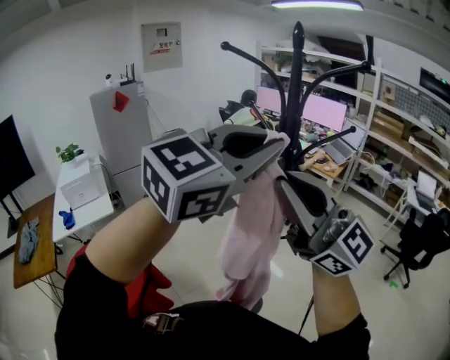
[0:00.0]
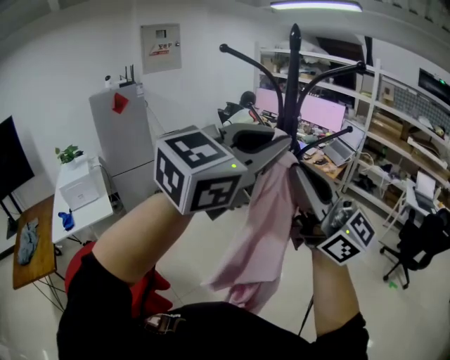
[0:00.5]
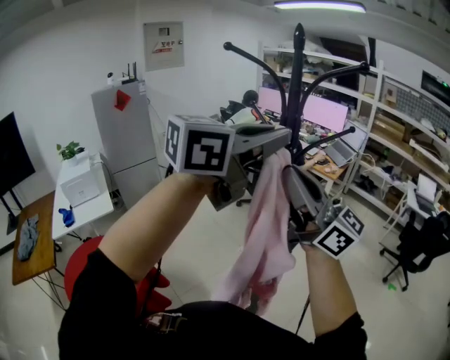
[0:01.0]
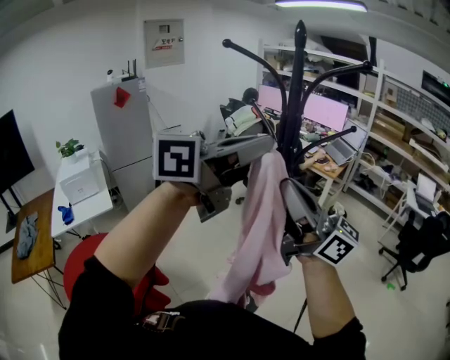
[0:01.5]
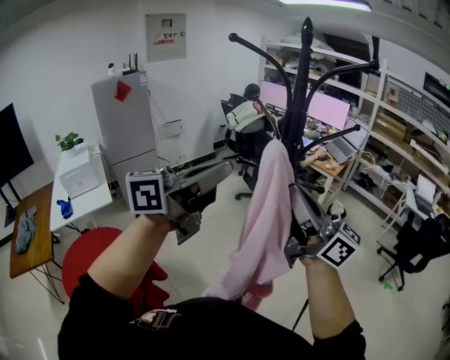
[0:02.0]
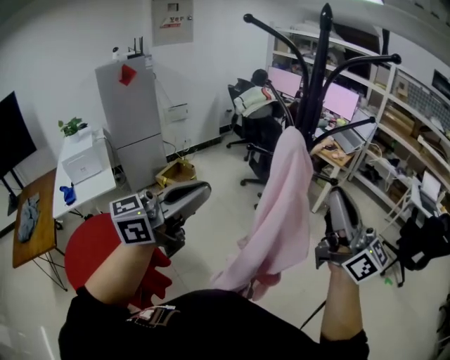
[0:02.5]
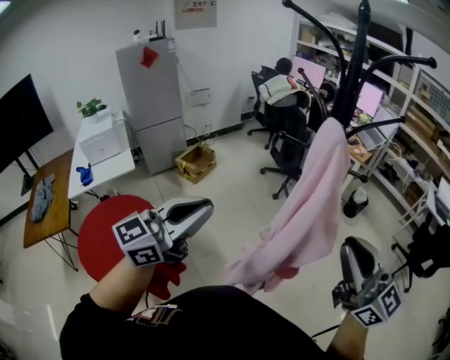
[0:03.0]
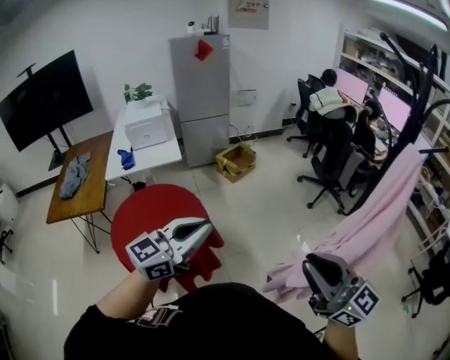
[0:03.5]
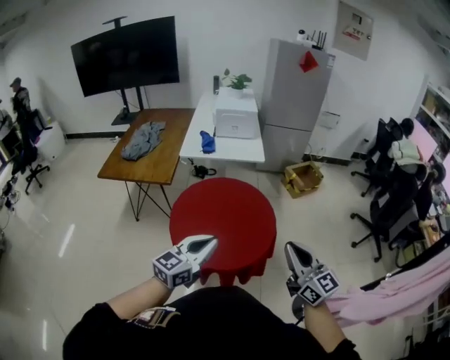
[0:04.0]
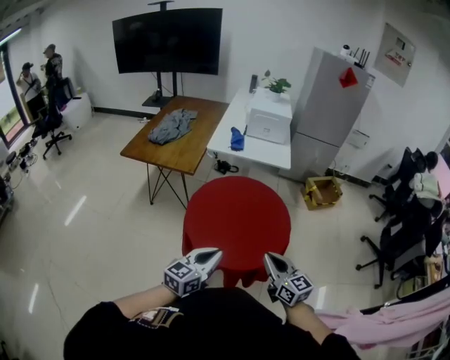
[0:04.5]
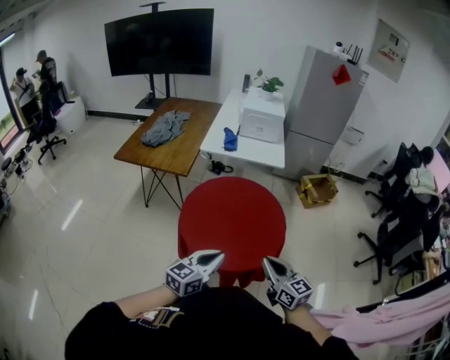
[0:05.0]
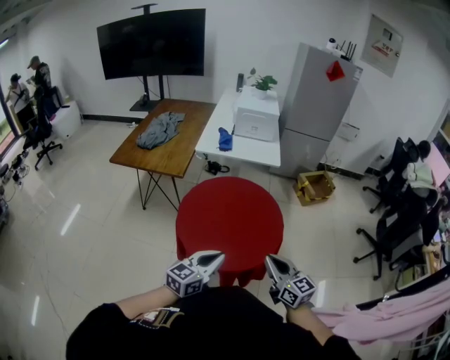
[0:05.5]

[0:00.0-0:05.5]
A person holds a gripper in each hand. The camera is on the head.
0:00.0 to 0:02.0: The left gripper shifts by about 10 cm, and rolls counterclockwise, seen from behind, by approximately 50 degrees, while the right gripper changes place by some 10 cm, and turns by roughly 40 degrees.
0:02.0 to 0:03.5: The right gripper moves roughly 25 cm, and turns by about 30 degrees; the left gripper shifts by roughly 40 cm, and swivels roughly 40 degrees.
0:03.5 to 0:05.5: The right gripper ends up about 40 cm from where it was, and turns by approximately 30 degrees. Meanwhile the left gripper changes place by some 35 cm, and swivels about 40 degrees.

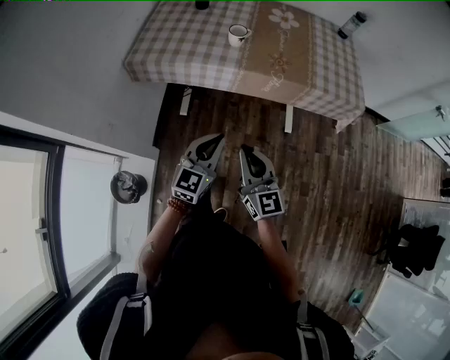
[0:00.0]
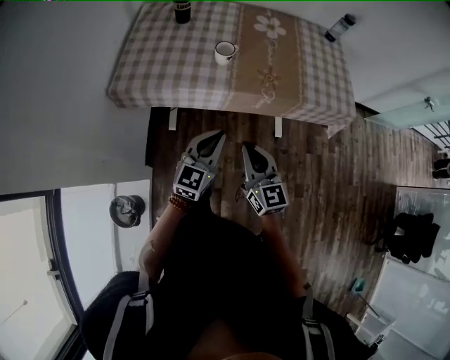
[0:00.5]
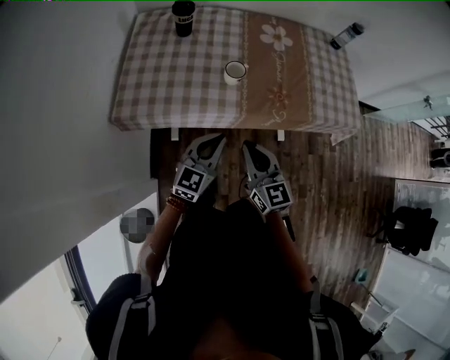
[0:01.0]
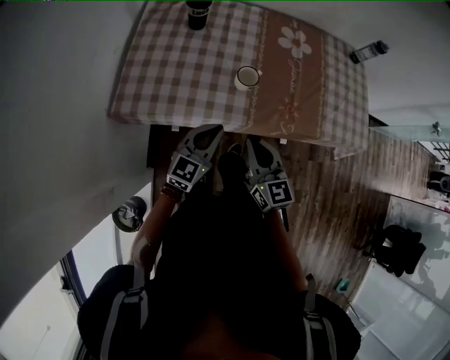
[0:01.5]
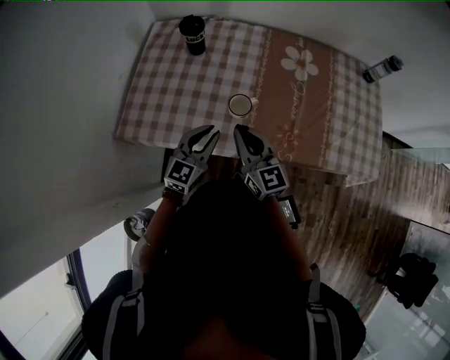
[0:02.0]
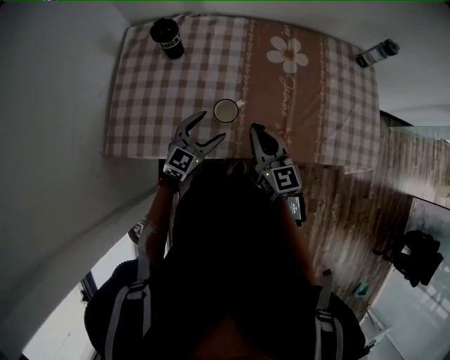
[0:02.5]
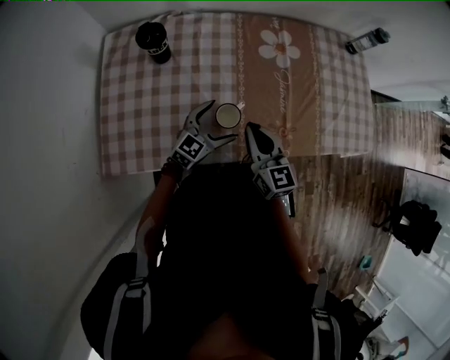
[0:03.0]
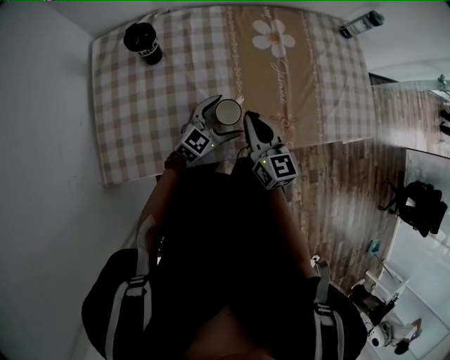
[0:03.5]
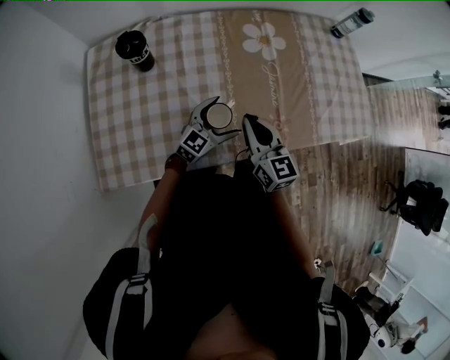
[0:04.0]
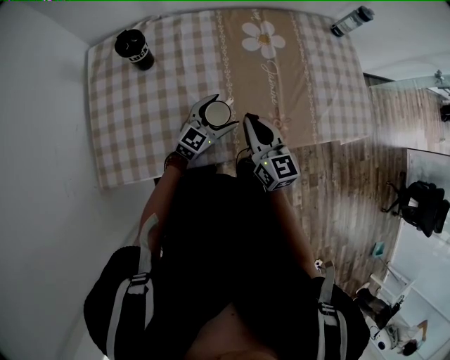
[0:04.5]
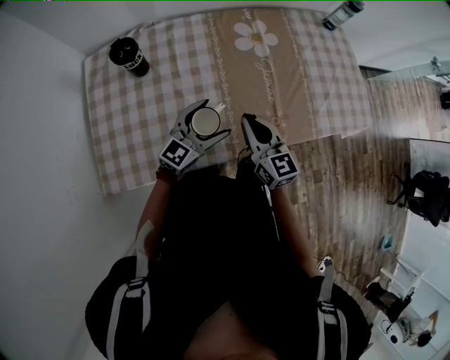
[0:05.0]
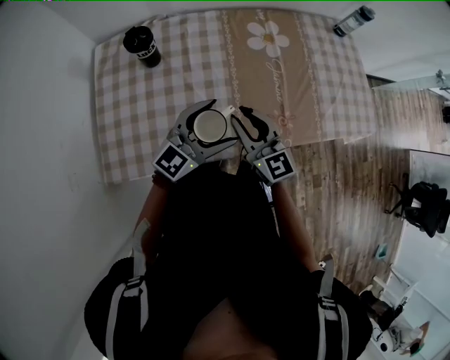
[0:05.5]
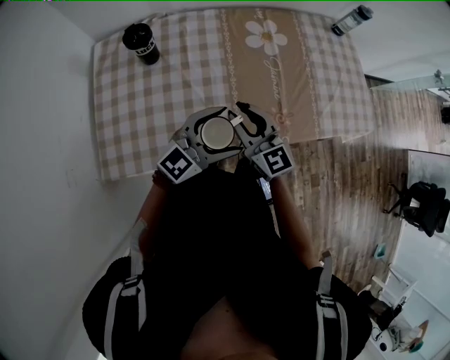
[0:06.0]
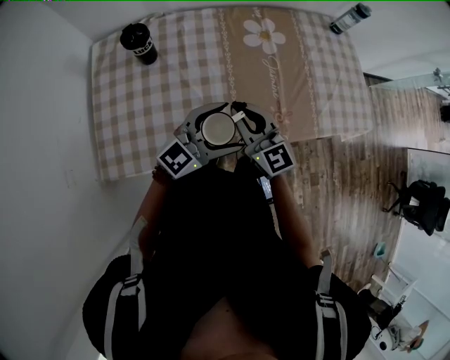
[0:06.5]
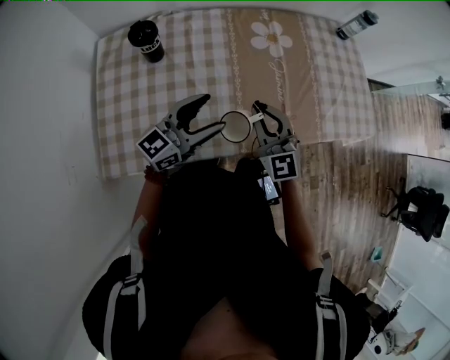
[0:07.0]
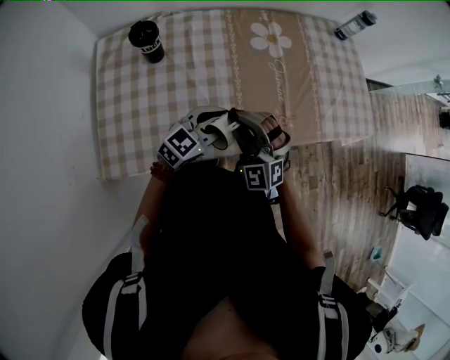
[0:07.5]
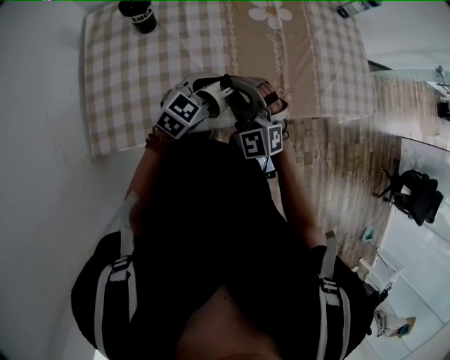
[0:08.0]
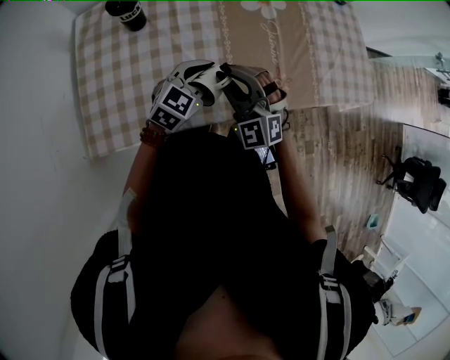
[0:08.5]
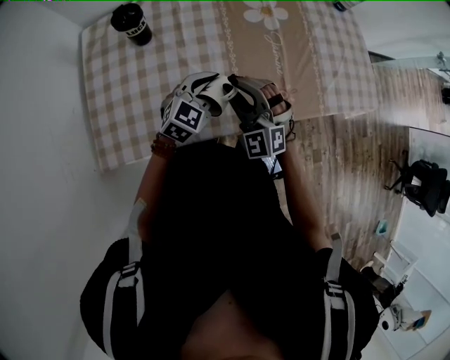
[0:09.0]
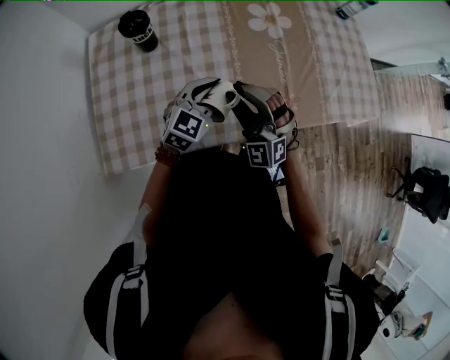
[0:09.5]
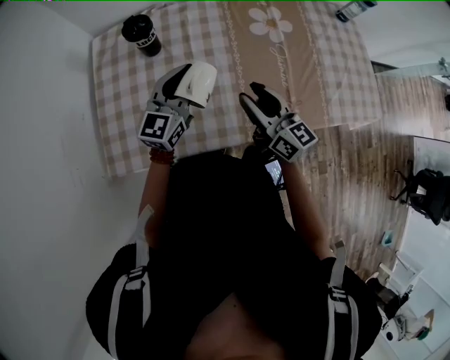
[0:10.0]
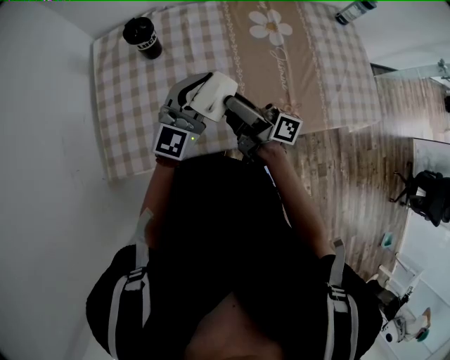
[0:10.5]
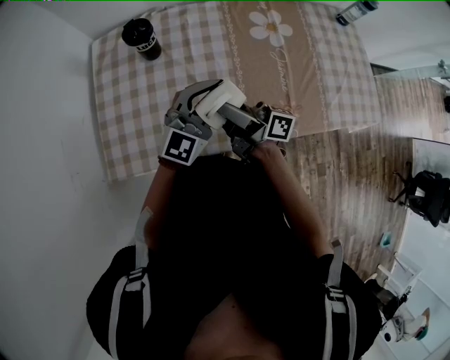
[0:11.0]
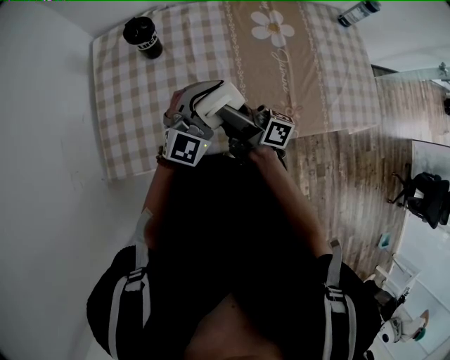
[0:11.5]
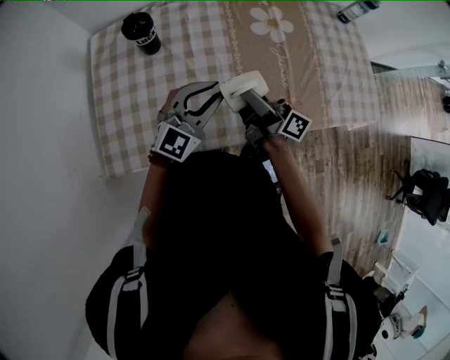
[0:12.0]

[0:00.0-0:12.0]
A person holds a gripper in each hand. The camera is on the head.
0:00.0 to 0:02.0: The pair of grippers is taken forward, approximately 40 cm.
0:02.0 to 0:04.0: The right gripper changes place by approximately 10 cm, and swivels about 20 degrees; the left gripper ends up some 20 cm from where it was, swivels about 30 degrees, and opens its fingers.
0:04.0 to 0:06.0: The left gripper is displaced upward and backward by about 20 cm; the right gripper changes place by roughly 5 cm.
0:06.0 to 0:08.0: The right gripper twists approximately 50 degrees counterclockwise, seen from behind, while the left gripper heads downward and forward, covering approximately 10 cm, rotates about 30 degrees, and closes up.
0:08.0 to 0:10.0: The left gripper is displaced to the left, upward and forward by roughly 15 cm, and swivels approximately 30 degrees; the right gripper shifts by some 5 cm, rotates around the line of its fingers by about 70 degrees, clockwise from behind, and opens up.
0:10.0 to 0:12.0: The left gripper moves backward and to the right, some 10 cm, and swivels some 30 degrees, while the right gripper travels to the left and back again, approximately 10 cm each way, rolls clockwise, seen from behind, by some 40 degrees, and opens.

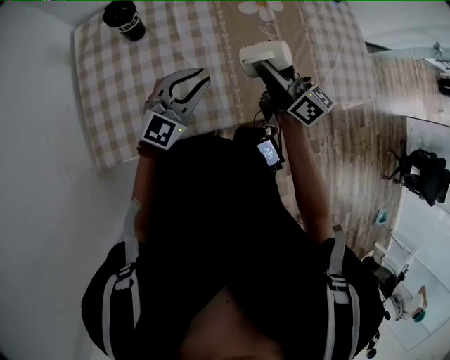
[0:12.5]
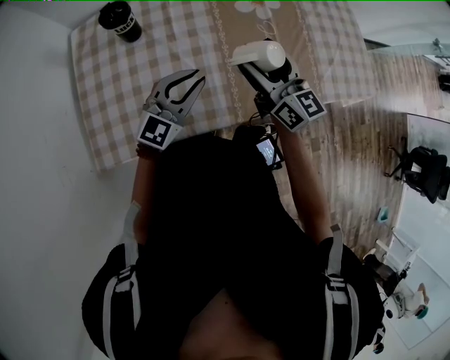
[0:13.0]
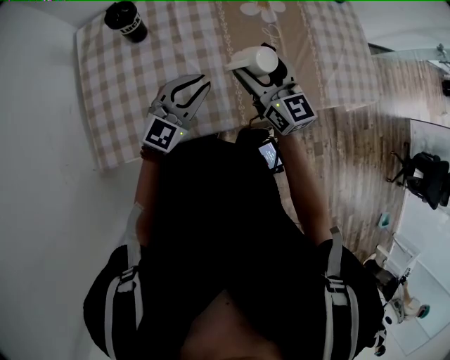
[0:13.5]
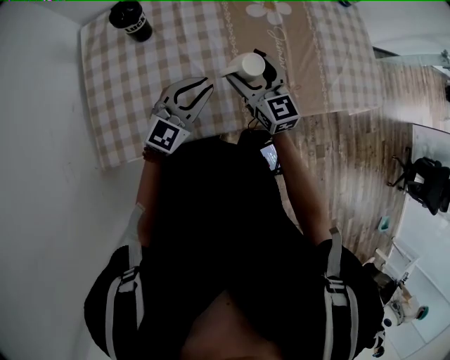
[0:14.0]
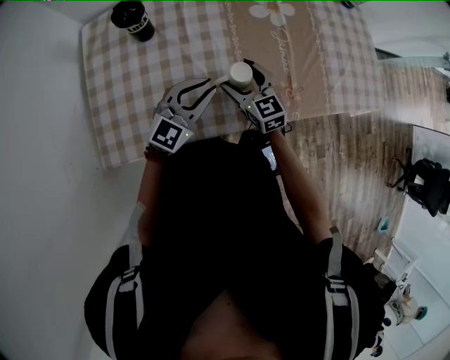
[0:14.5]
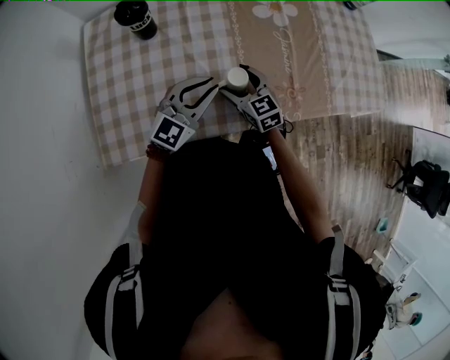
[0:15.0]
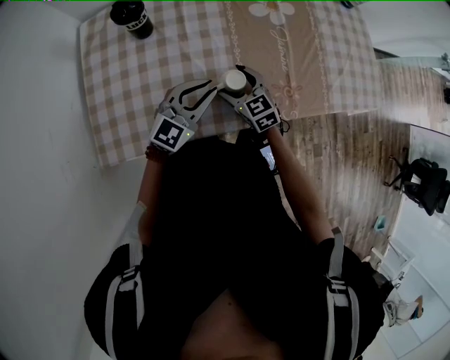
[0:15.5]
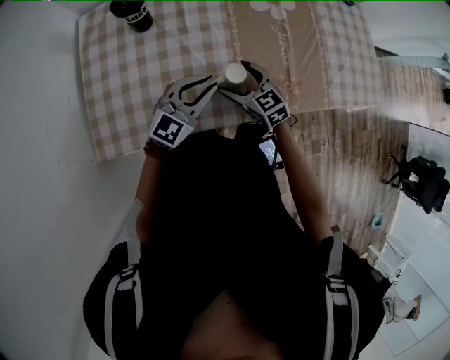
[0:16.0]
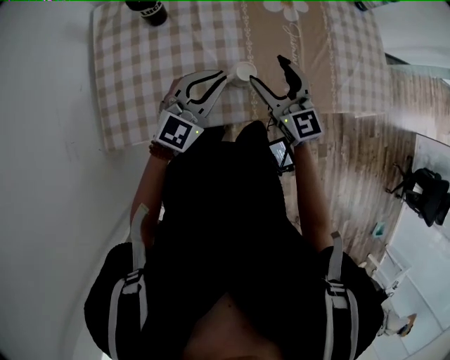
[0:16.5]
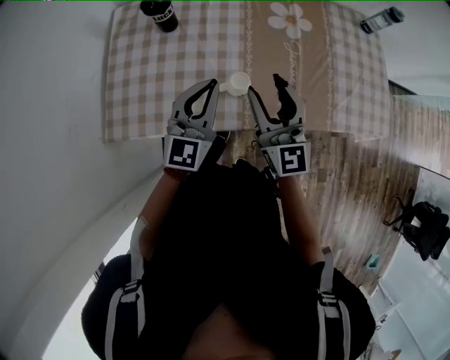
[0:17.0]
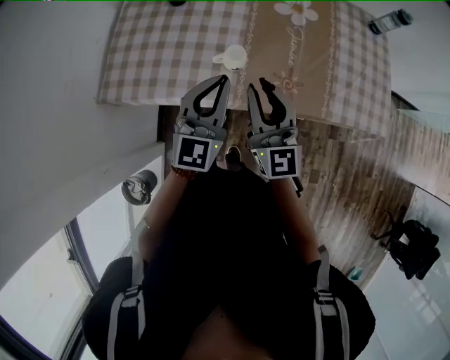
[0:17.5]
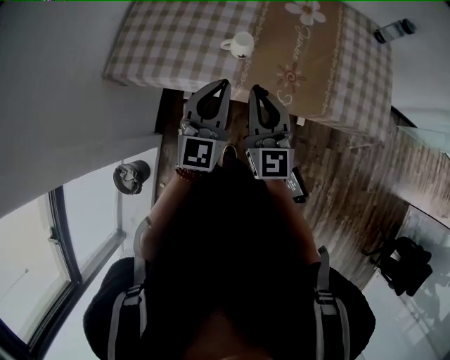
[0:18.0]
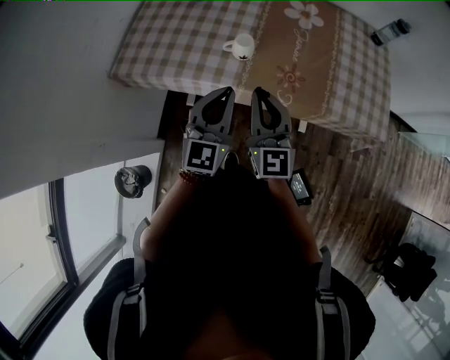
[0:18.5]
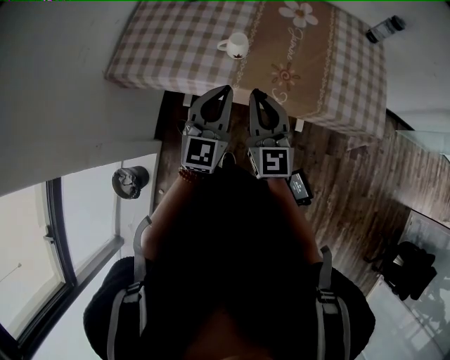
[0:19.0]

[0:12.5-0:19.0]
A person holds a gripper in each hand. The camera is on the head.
0:12.5 to 0:14.5: The right gripper is displaced downward and to the left by about 15 cm, and turns by approximately 40 degrees.
0:14.5 to 0:17.0: The left gripper is displaced upward by approximately 10 cm, and turns by some 30 degrees. The right gripper heads upward, covering roughly 20 cm, changes its angle by roughly 30 degrees, and closes.
0:17.0 to 0:19.0: Both grippers move backward, about 20 cm. The right gripper closes.

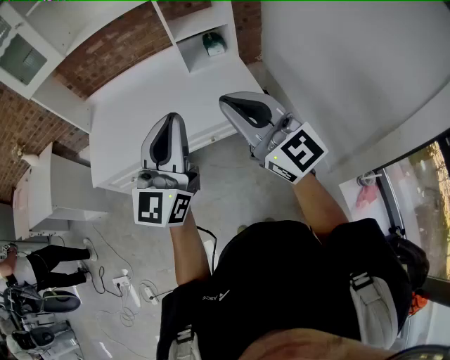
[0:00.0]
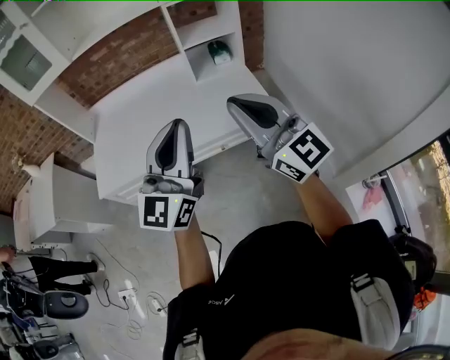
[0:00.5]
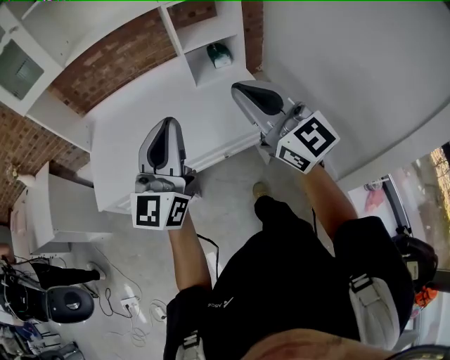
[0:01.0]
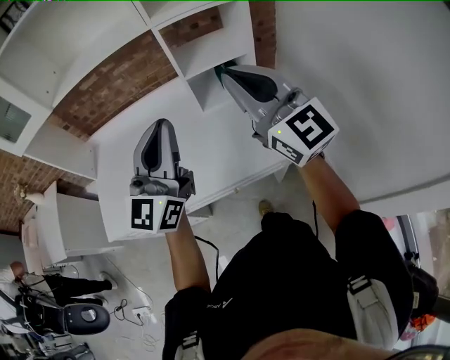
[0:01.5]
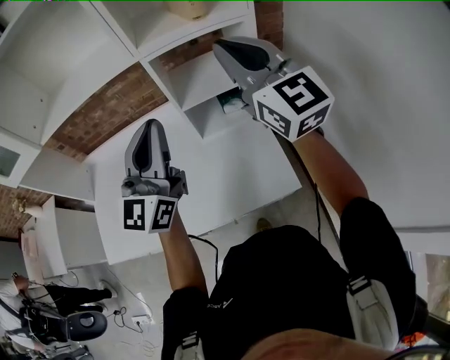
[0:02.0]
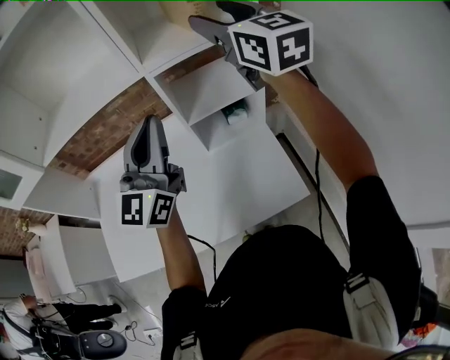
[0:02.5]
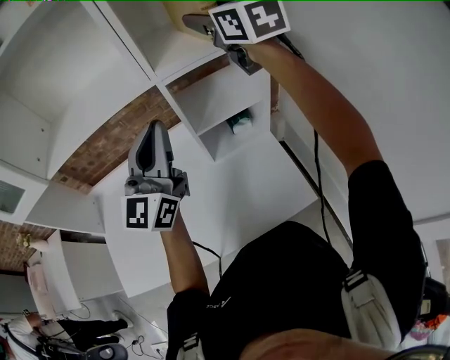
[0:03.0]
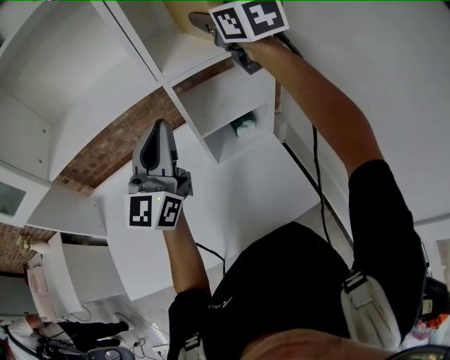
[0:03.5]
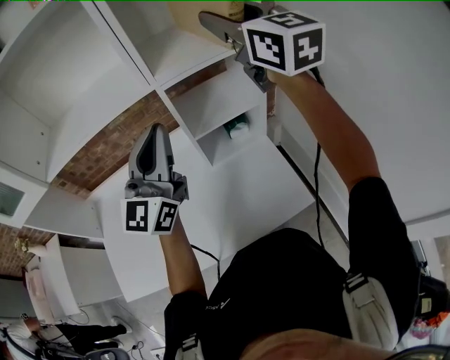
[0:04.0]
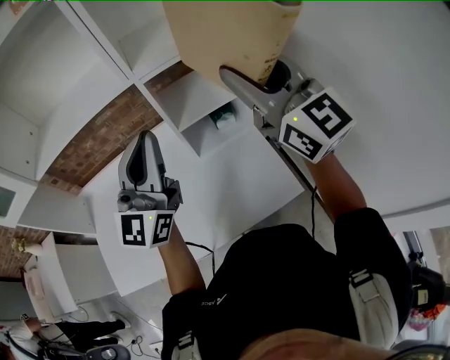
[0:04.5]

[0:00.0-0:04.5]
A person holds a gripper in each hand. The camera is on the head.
0:00.0 to 0:02.0: The pair of grippers is taken forward, roughly 40 cm.
0:02.0 to 0:04.5: The right gripper moves roughly 20 cm forward and comes back, and opens. The left gripper travels forward and back again, some 10 cm each way.
